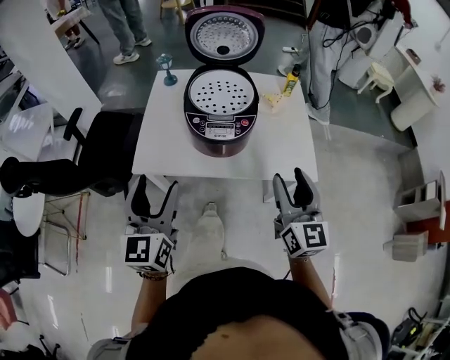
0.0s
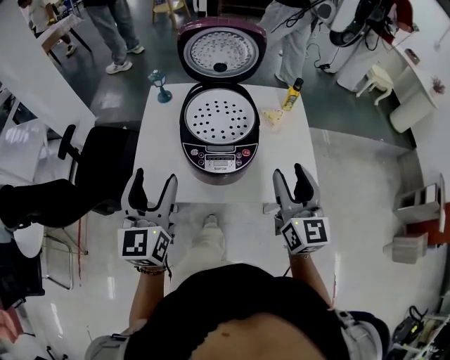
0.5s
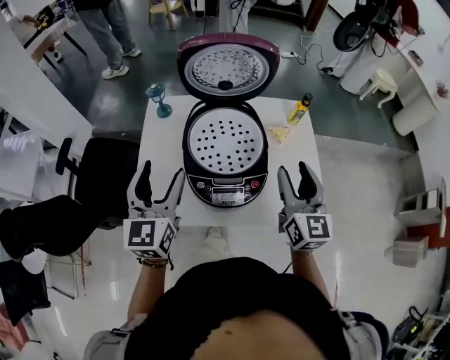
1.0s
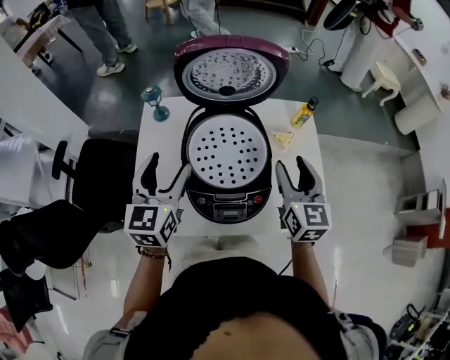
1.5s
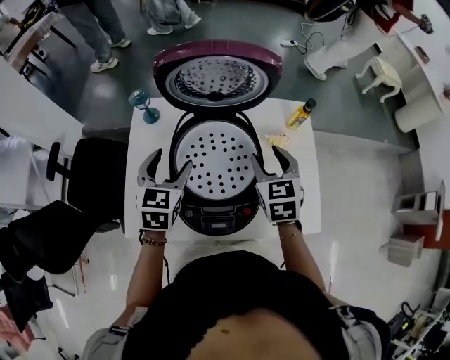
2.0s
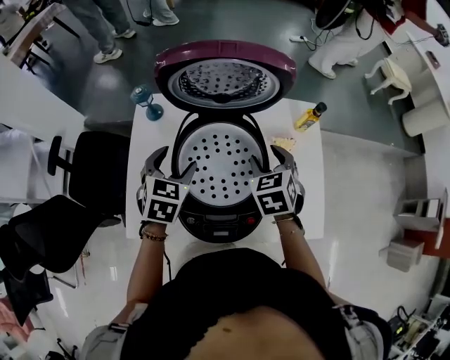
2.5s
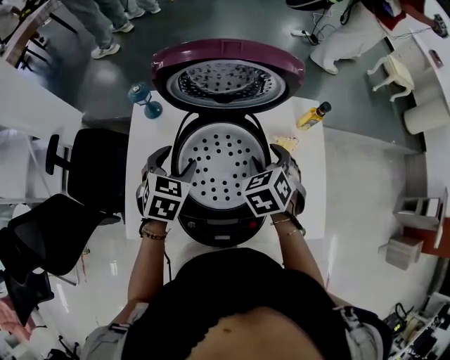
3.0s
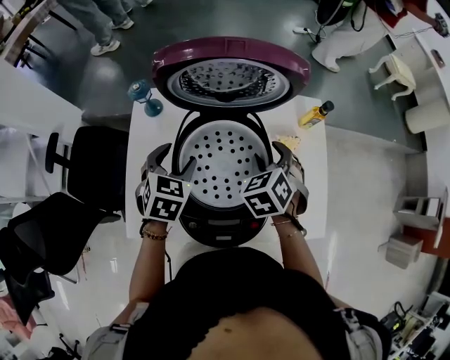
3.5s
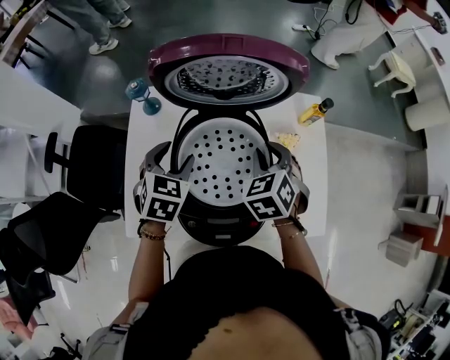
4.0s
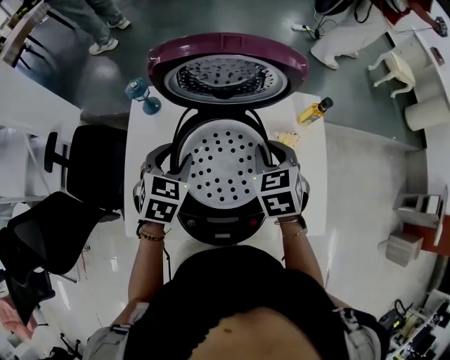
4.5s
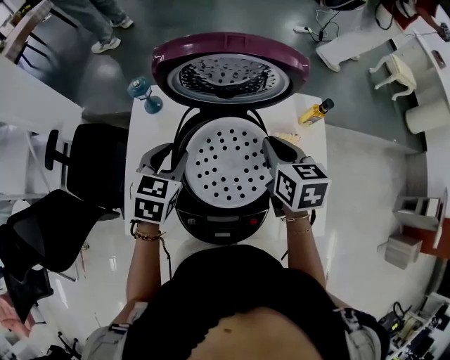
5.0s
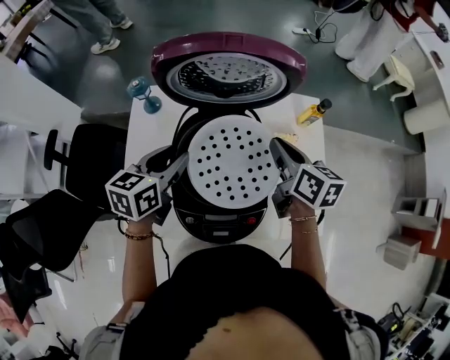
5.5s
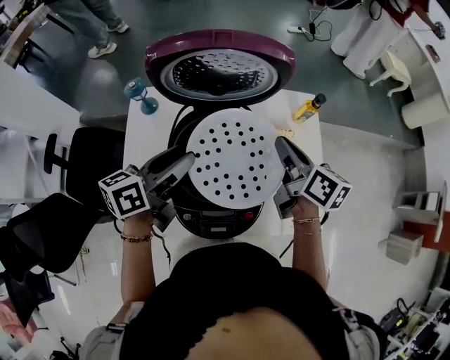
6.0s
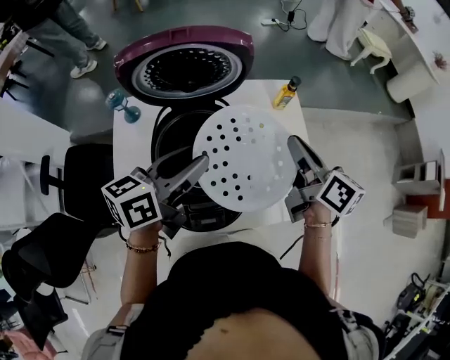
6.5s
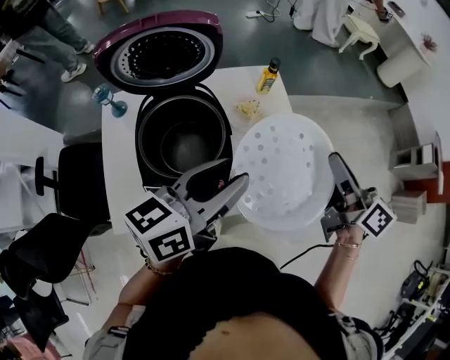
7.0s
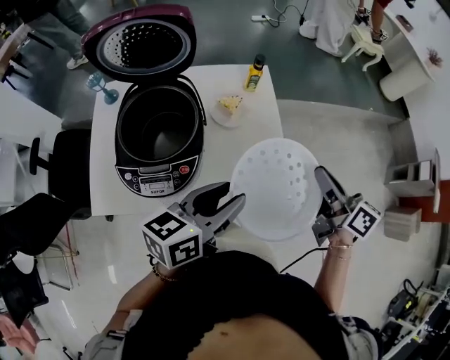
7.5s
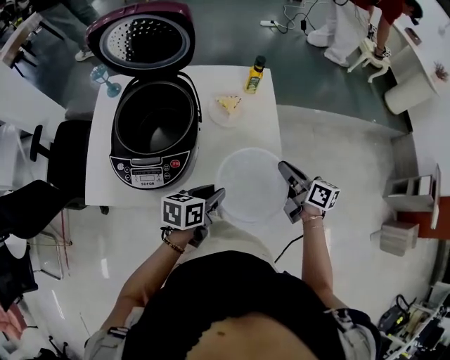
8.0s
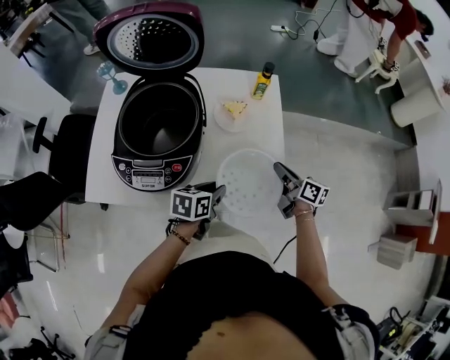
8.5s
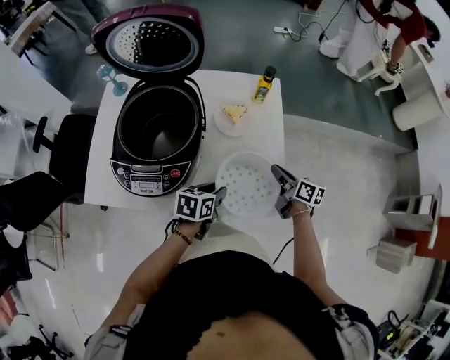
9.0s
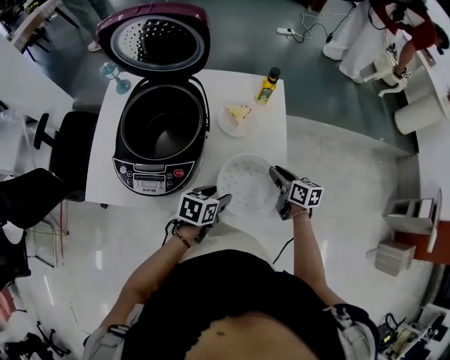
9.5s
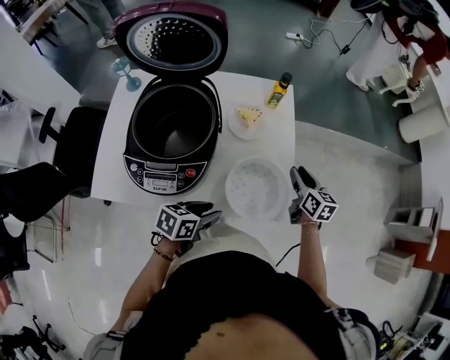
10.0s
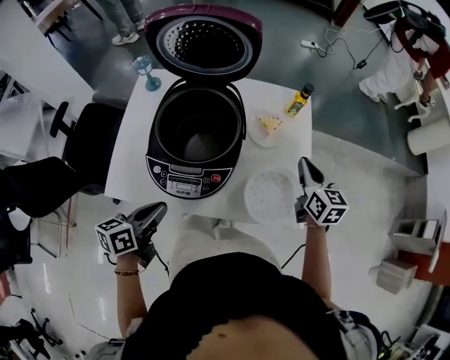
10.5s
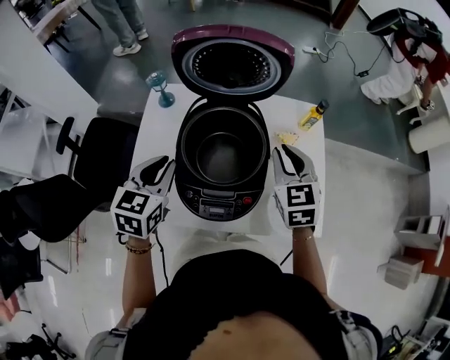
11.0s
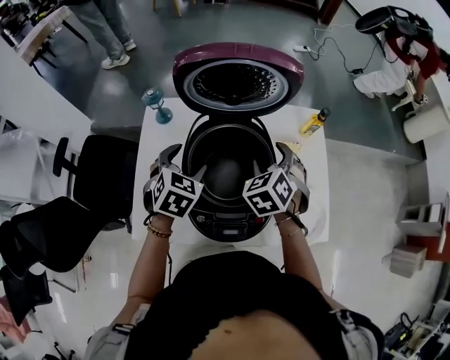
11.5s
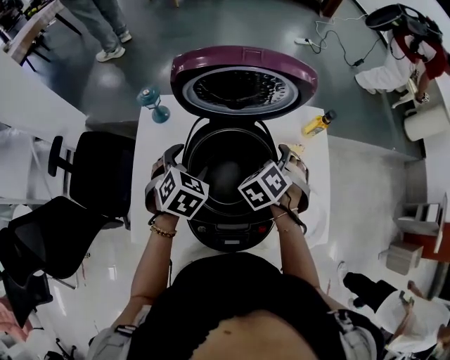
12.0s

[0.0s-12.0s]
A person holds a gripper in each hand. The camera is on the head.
0.0s to 2.0s: Both grippers move forward, some 35 cm. The right gripper angles its fingers downward, by about 30 degrees. The left gripper changes its angle by roughly 30 degrees.
2.0s to 4.0s: The left gripper moves some 5 cm. Meanwhile the right gripper ends up about 5 cm from where it was, rotates approximately 20 degrees, and closes.
4.0s to 6.0s: The right gripper is displaced upward and to the right by approximately 10 cm, and rotates around the line of its fingers by roughly 70 degrees, clockwise from behind. The left gripper travels upward by some 10 cm, and points its fingers some 30 degrees further upward.
6.0s to 8.0s: The right gripper travels to the right and downward by approximately 30 cm; the left gripper moves to the right, downward and backward, about 40 cm, and rotates roughly 20 degrees.
8.0s to 10.0s: The left gripper changes place by about 5 cm. Meanwhile the right gripper goes some 5 cm forward, changes its angle by some 30 degrees, and opens its fingers.
10.0s to 12.0s: The left gripper shifts about 40 cm to the left and forward, swivels about 50 degrees, and opens its fingers. The right gripper shifts about 30 cm to the left, twists about 60 degrees counterclockwise, seen from behind, and opens up.

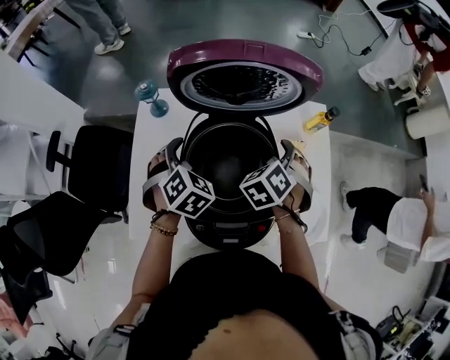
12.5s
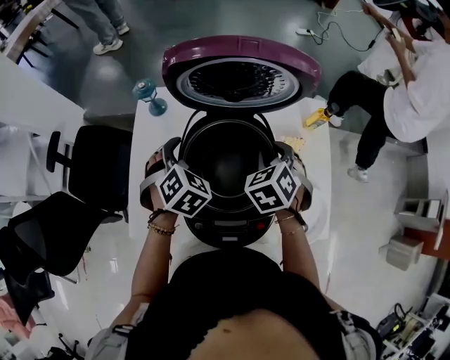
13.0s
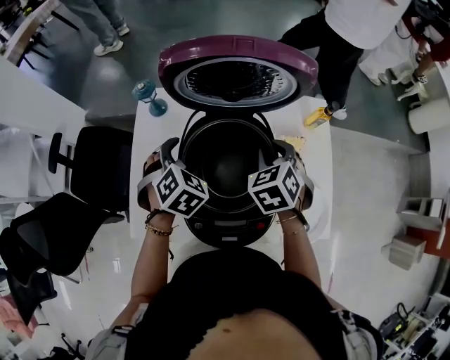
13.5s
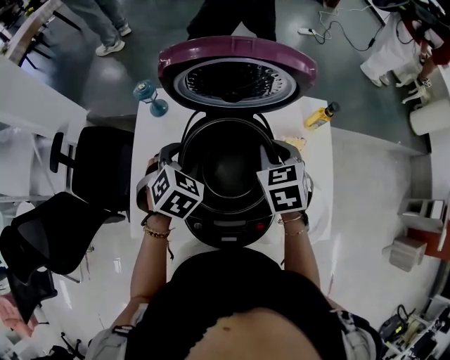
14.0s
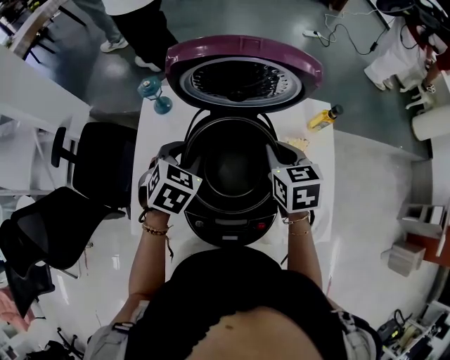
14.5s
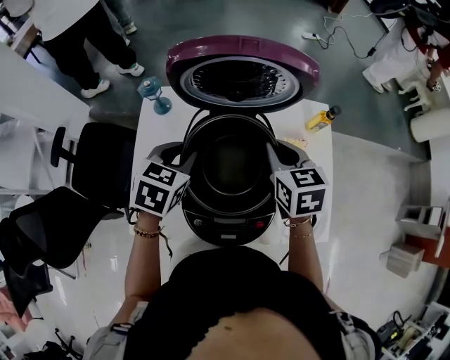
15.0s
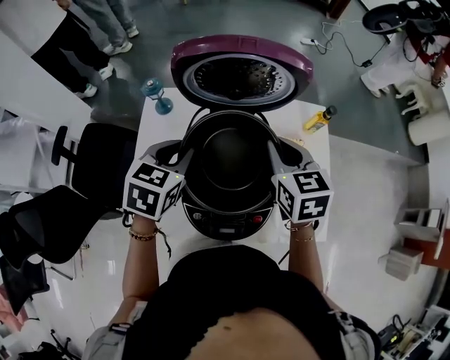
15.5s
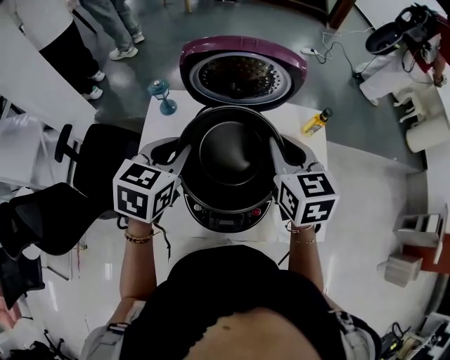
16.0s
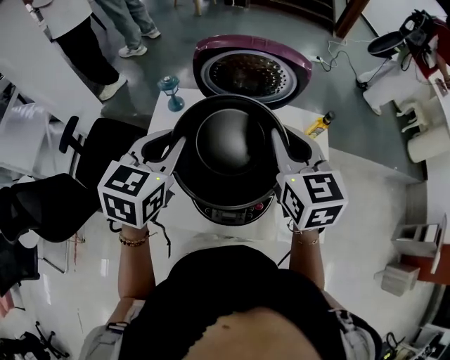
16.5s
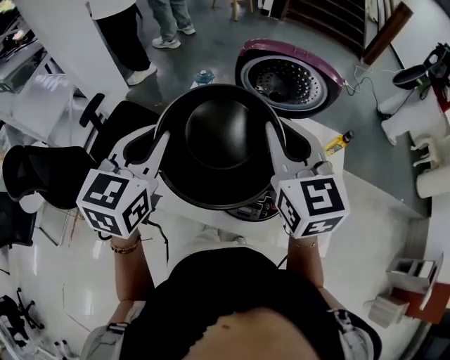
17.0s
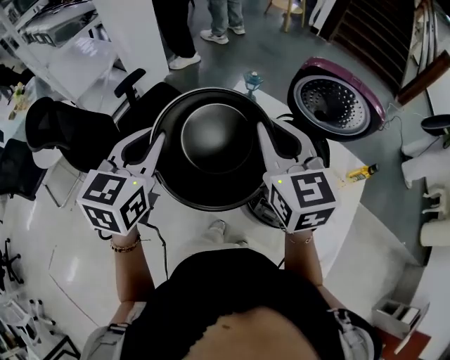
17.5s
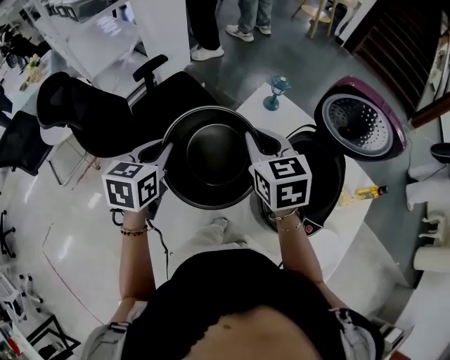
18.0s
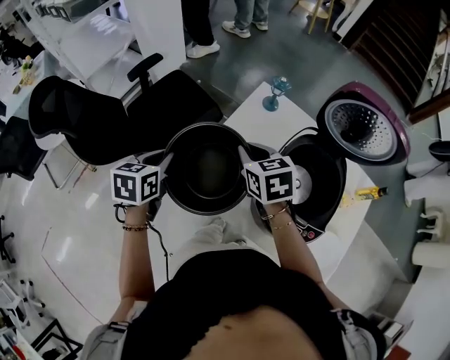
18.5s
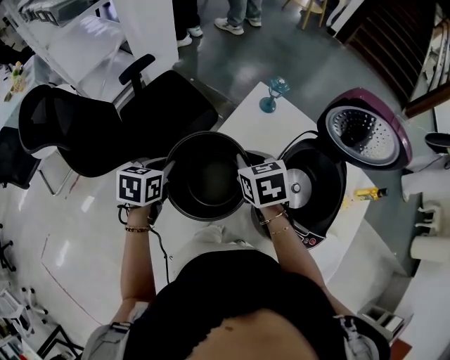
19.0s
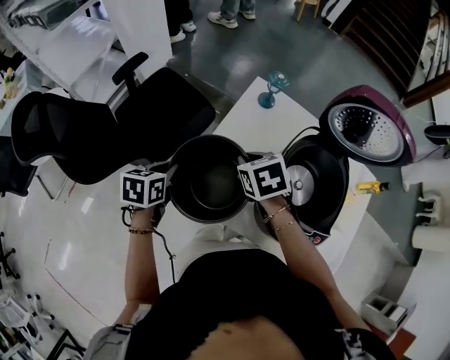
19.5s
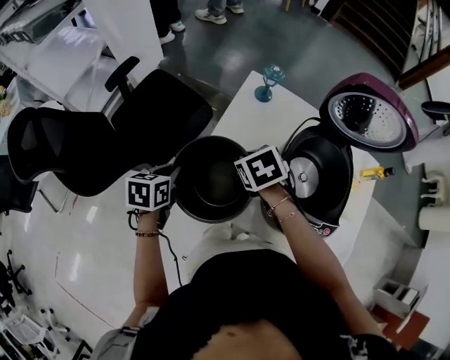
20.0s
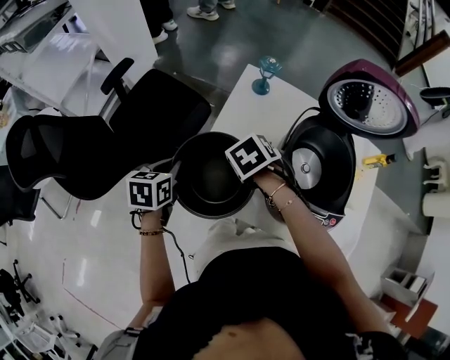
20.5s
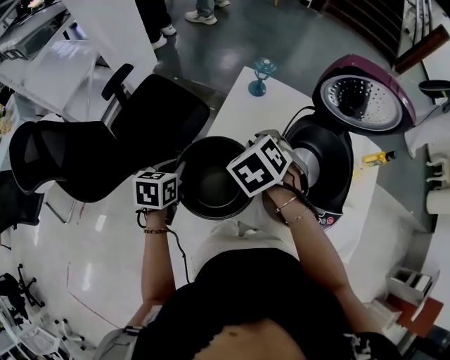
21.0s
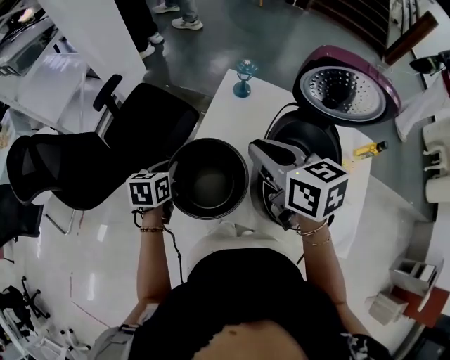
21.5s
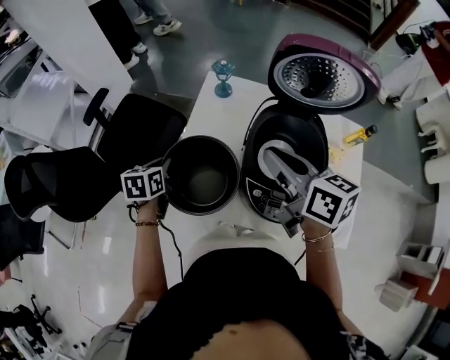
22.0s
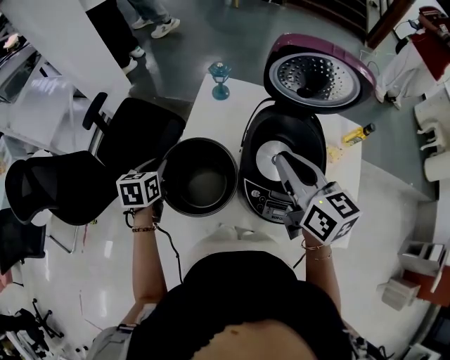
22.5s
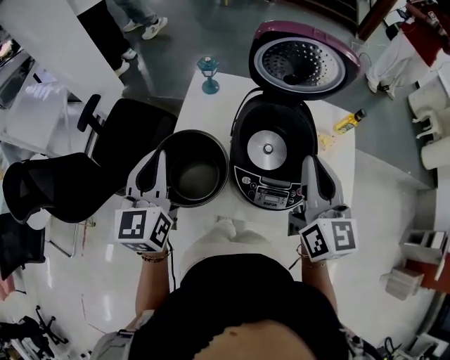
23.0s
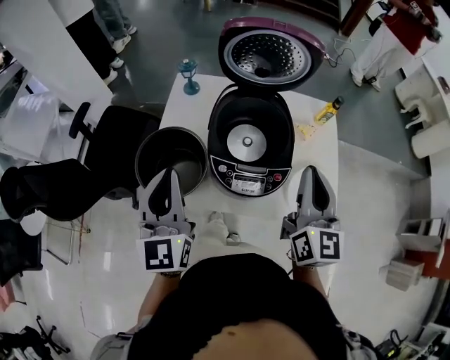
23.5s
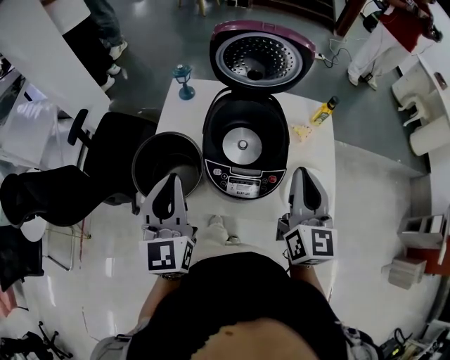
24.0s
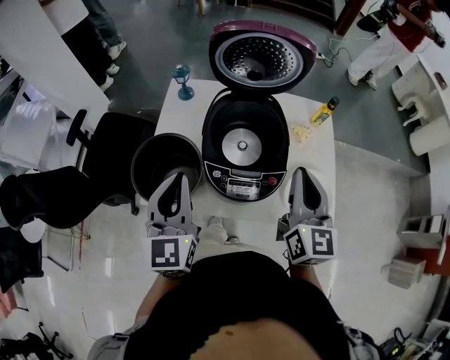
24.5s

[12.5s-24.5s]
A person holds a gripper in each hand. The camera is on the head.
12.5s to 14.5s: The right gripper changes its angle by approximately 50 degrees, and closes its fingers. The left gripper closes its fingers.
14.5s to 16.5s: Both grippers travel together upward and backward, approximately 20 cm. The left gripper turns by approximately 30 degrees. Meanwhile the right gripper rotates about 20 degrees.
16.5s to 18.5s: The left gripper changes place by roughly 35 cm, and rotates approximately 40 degrees. Meanwhile the right gripper moves some 35 cm, and turns by roughly 40 degrees.
18.5s to 20.5s: Both grippers move downward, roughly 10 cm. The right gripper tips its fingers downward by approximately 40 degrees.
20.5s to 22.5s: The right gripper goes some 20 cm upward, and points its fingers about 60 degrees further upward. The left gripper moves roughly 5 cm.
22.5s to 24.5s: The left gripper shifts some 30 cm to the right, upward and backward, and tips its fingers upward by about 40 degrees; the right gripper moves to the right and backward, some 20 cm, and rotates approximately 40 degrees.

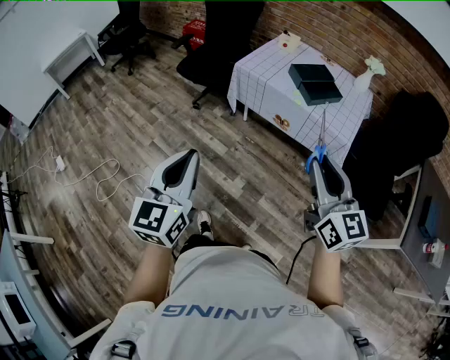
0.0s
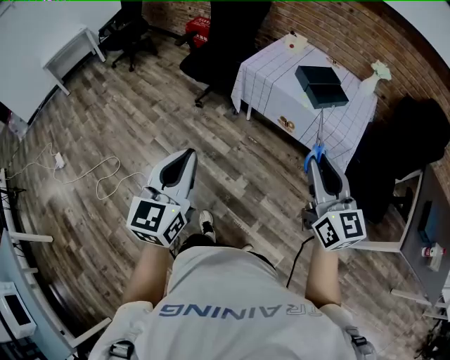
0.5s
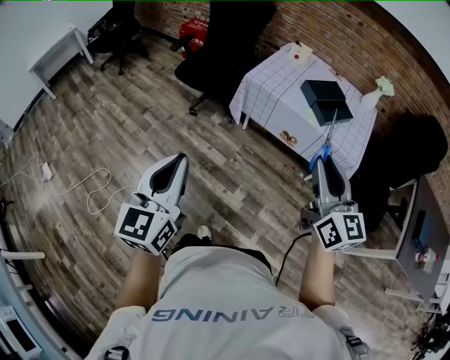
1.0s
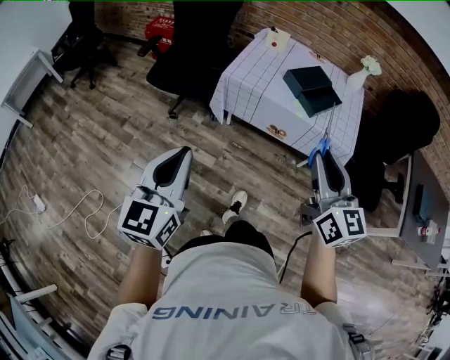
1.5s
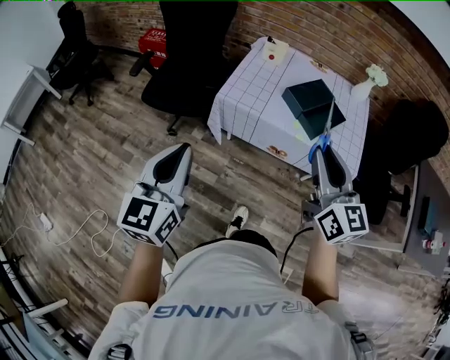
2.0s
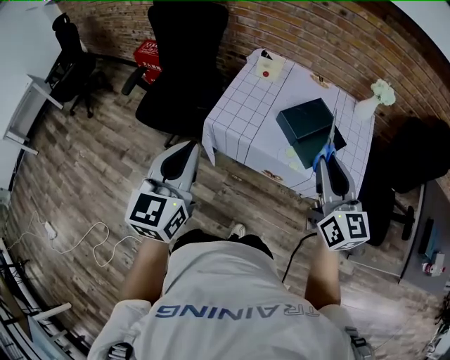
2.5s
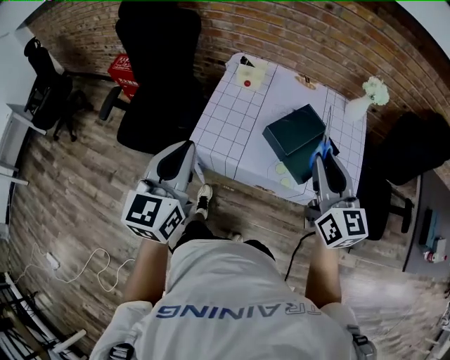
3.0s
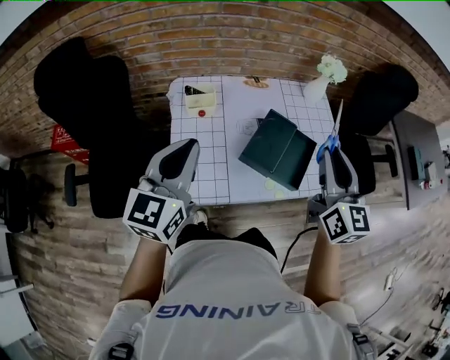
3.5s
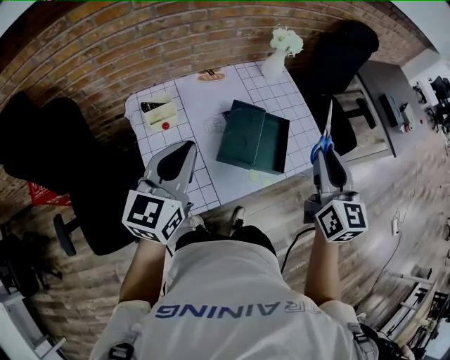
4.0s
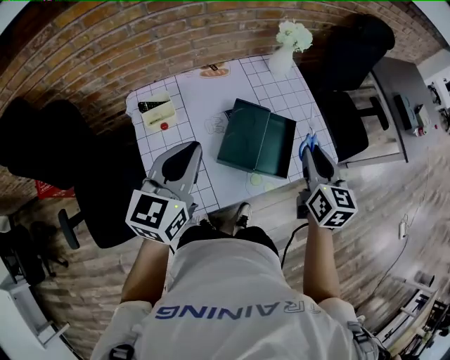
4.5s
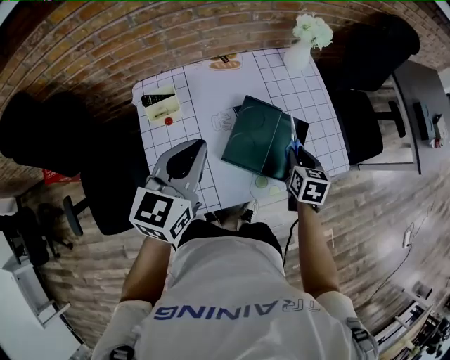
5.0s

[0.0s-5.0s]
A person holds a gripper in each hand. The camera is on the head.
0.0s to 2.5s: Both grippers are carried forward, approximately 50 cm.
2.5s to 5.0s: The right gripper shifts approximately 25 cm downward, and tips its fingers downward by about 40 degrees. The left gripper shifts by approximately 40 cm, and swivels approximately 50 degrees.
